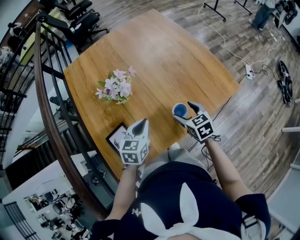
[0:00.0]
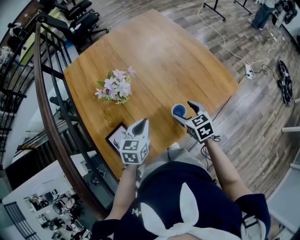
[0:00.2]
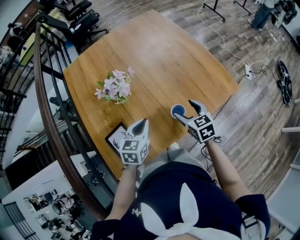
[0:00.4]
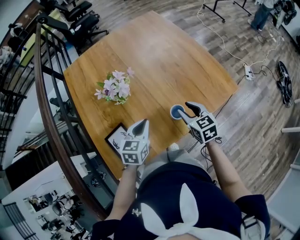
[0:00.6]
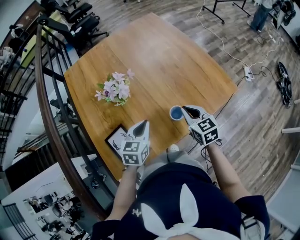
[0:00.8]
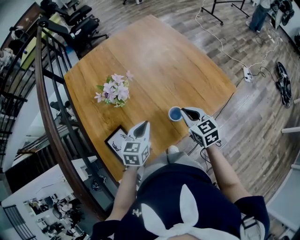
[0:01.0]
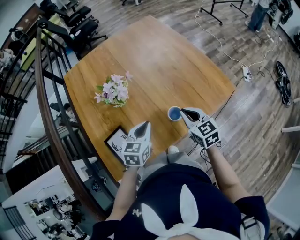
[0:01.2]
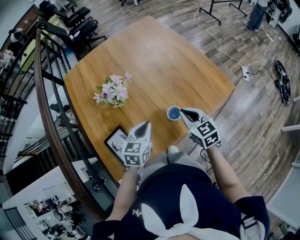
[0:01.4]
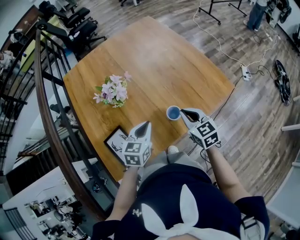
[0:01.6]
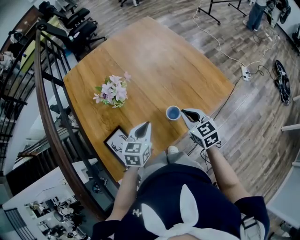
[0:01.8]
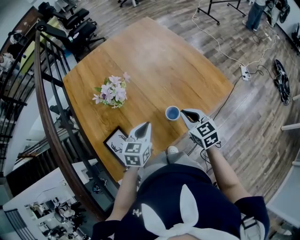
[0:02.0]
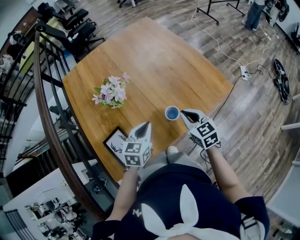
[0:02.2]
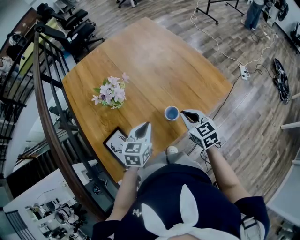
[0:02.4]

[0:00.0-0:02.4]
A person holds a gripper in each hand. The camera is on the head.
0.0 to 1.2 s: The right gripper shifts some 5 cm upward, and closes its fingers.
1.2 to 2.4 s: The grippers stay close to where they were, moving slightly.

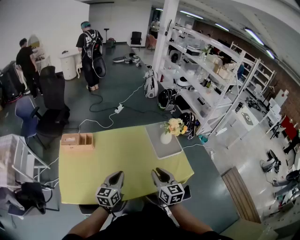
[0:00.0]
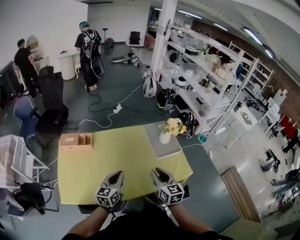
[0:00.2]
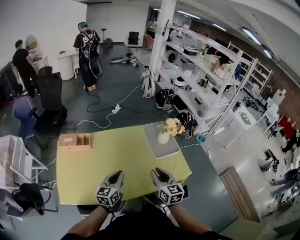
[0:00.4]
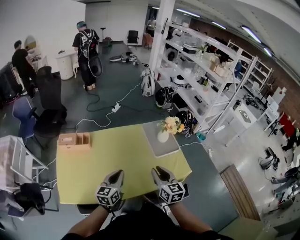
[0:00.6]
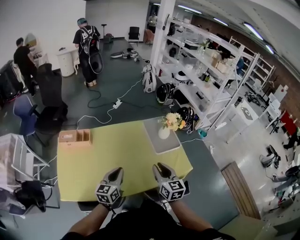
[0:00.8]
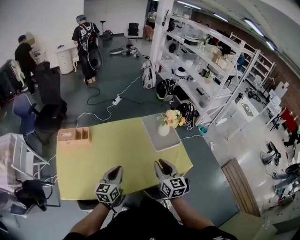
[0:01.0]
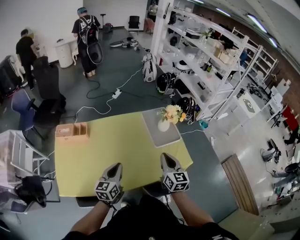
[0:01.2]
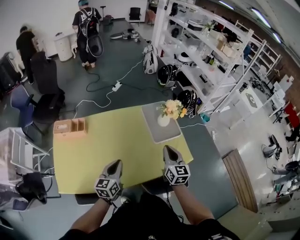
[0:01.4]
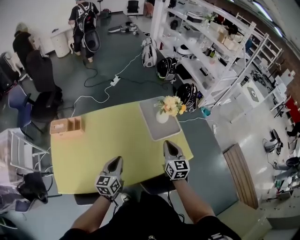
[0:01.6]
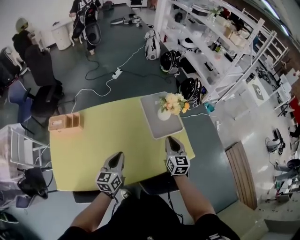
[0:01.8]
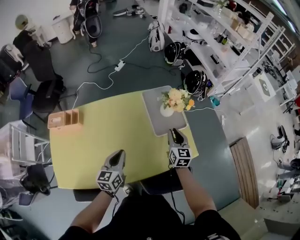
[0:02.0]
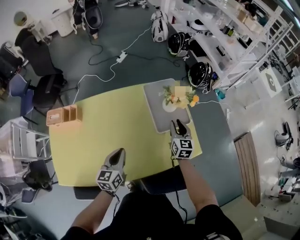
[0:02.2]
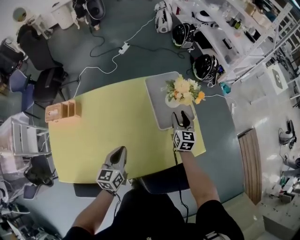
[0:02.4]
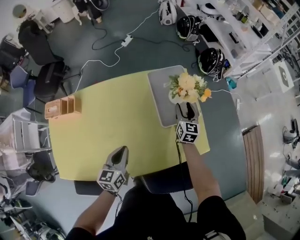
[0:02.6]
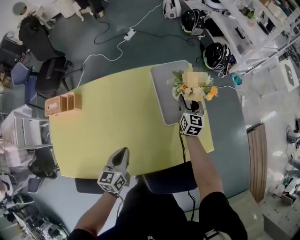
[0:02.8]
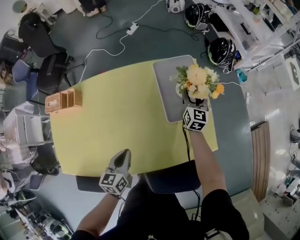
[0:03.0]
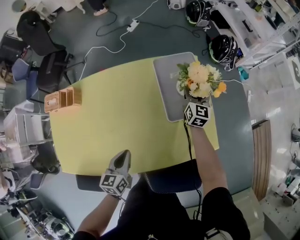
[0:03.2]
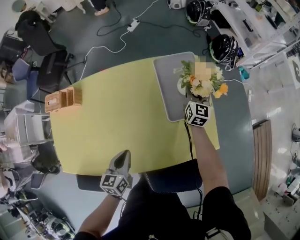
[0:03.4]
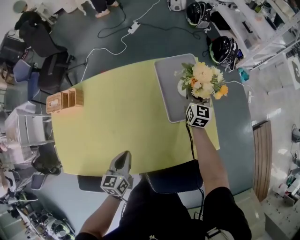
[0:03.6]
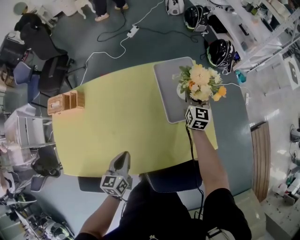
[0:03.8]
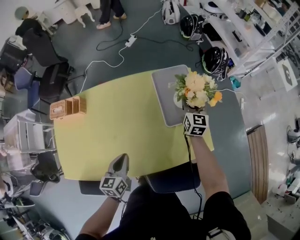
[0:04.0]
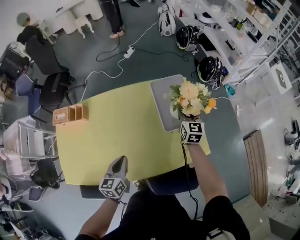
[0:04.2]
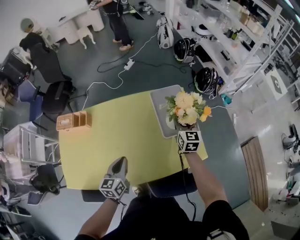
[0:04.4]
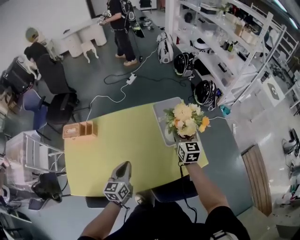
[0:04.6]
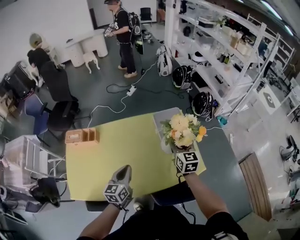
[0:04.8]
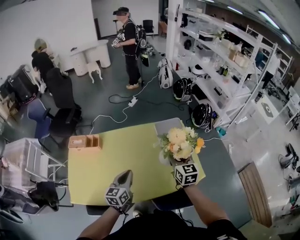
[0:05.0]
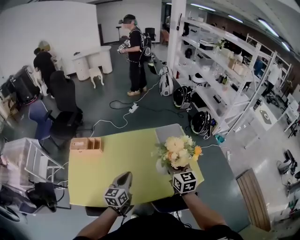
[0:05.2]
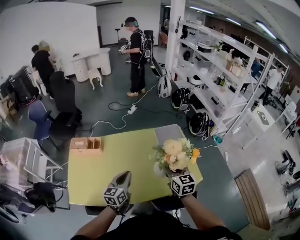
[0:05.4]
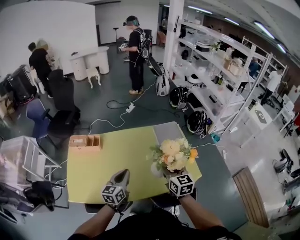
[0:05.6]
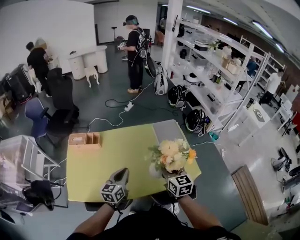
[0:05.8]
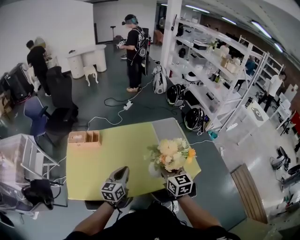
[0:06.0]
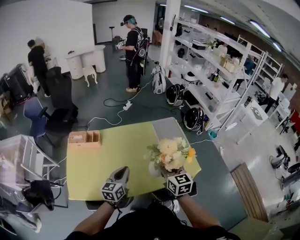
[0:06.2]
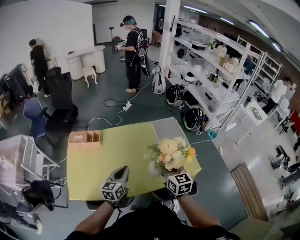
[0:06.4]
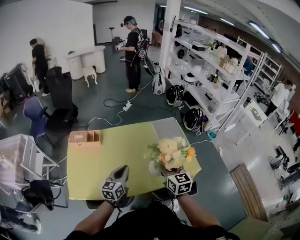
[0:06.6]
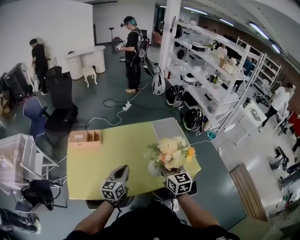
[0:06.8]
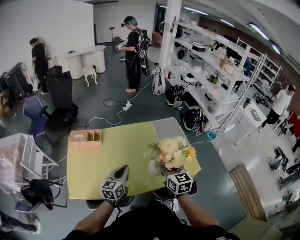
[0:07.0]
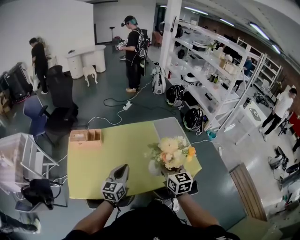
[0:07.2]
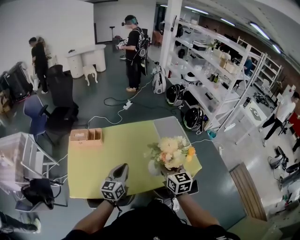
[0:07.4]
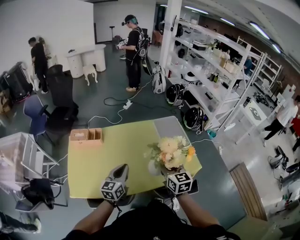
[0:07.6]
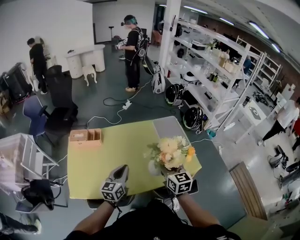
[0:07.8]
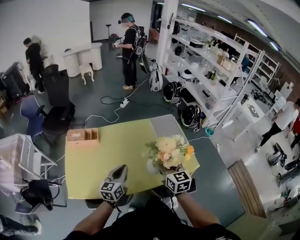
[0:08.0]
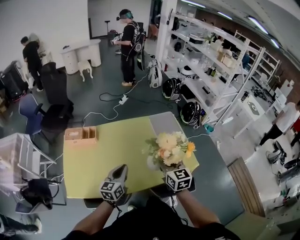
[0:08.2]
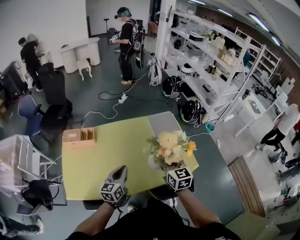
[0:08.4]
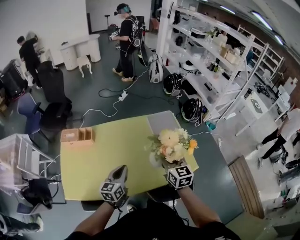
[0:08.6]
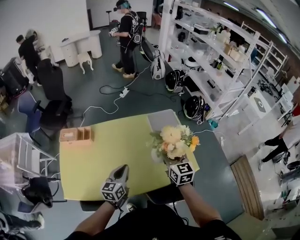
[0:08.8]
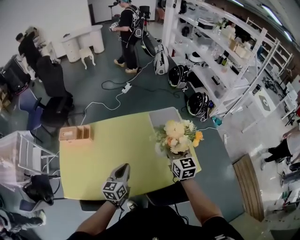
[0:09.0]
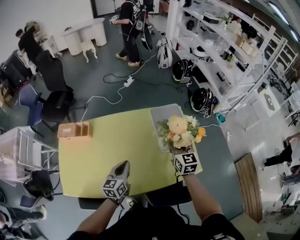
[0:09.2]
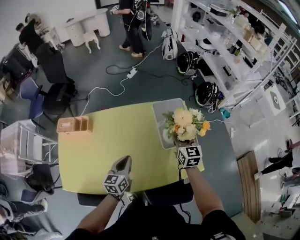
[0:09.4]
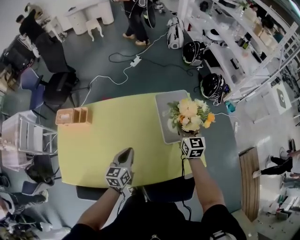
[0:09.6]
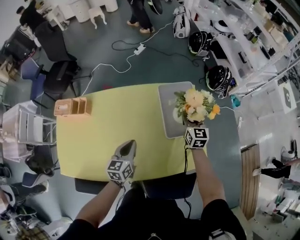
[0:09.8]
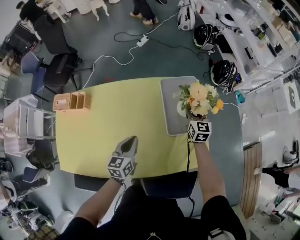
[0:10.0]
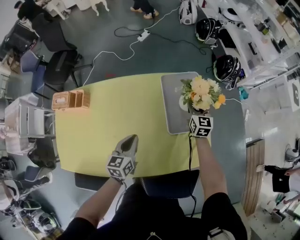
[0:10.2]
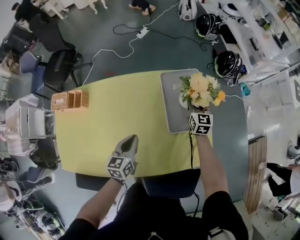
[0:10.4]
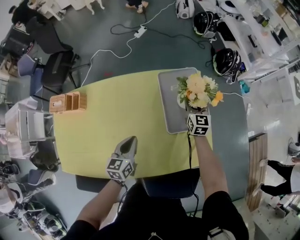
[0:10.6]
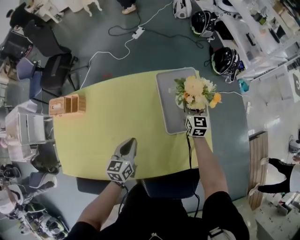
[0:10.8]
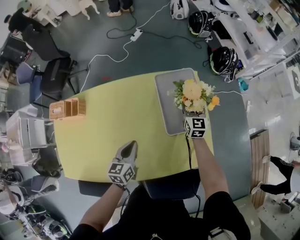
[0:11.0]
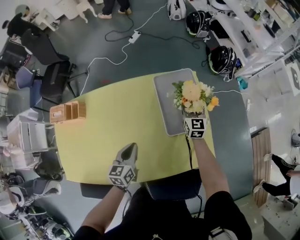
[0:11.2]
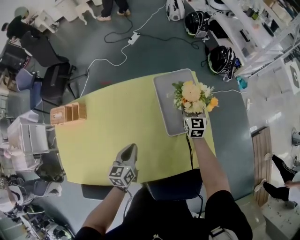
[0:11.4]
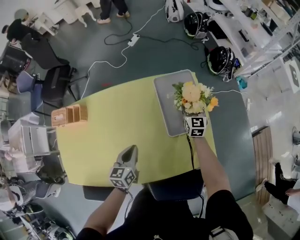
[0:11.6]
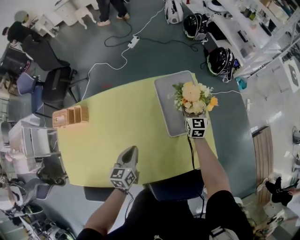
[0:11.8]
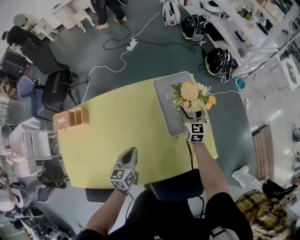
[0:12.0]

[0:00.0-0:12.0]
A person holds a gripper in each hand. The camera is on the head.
0.0 to 1.6 s: The left gripper is displaced forward, to the right and downward by roughly 10 cm; the right gripper shifts about 20 cm forward, to the right and downward.
1.6 to 3.0 s: The left gripper travels downward and forward by about 20 cm; the right gripper is displaced forward and downward by approximately 40 cm, and opens up.
3.0 to 4.4 s: The left gripper is displaced upward by roughly 10 cm; the right gripper is displaced upward and backward by about 20 cm.
4.4 to 6.0 s: The right gripper is displaced backward, to the left and upward by roughly 35 cm; the left gripper moves backward, upward and to the left, approximately 15 cm.
6.0 to 7.6 s: The grippers move only a little.
7.6 to 9.0 s: The right gripper heads forward and to the right, covering about 25 cm, while the left gripper heads forward, to the right and downward, covering some 15 cm.
9.0 to 10.4 s: The right gripper heads forward, downward and to the right, covering some 40 cm. Meanwhile the left gripper travels forward, downward and to the right by roughly 20 cm.
10.4 to 12.0 s: The right gripper changes place by some 5 cm, and opens up.

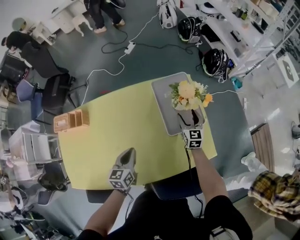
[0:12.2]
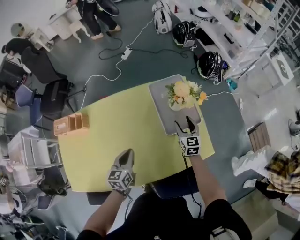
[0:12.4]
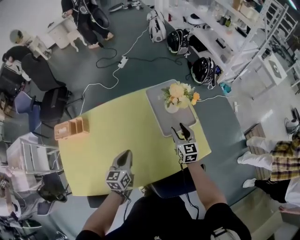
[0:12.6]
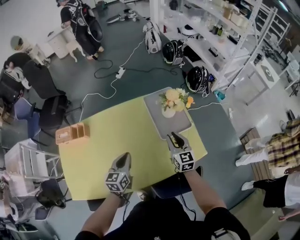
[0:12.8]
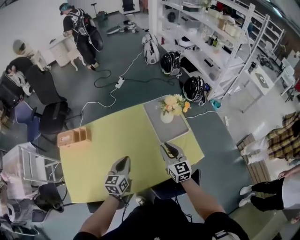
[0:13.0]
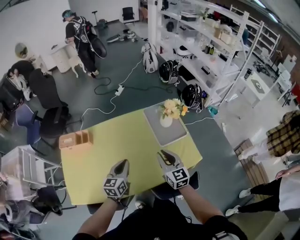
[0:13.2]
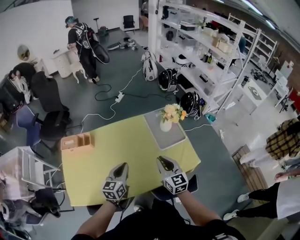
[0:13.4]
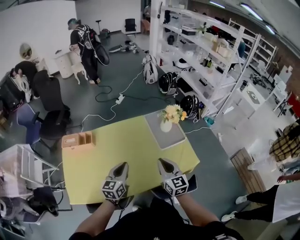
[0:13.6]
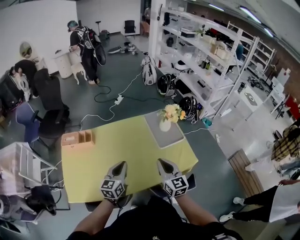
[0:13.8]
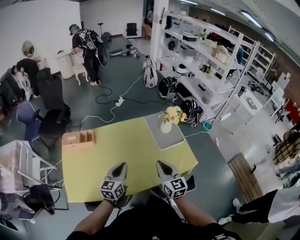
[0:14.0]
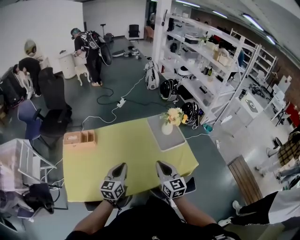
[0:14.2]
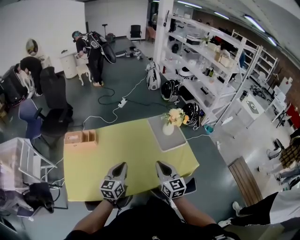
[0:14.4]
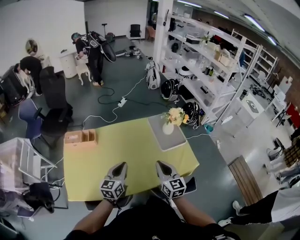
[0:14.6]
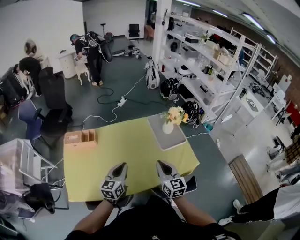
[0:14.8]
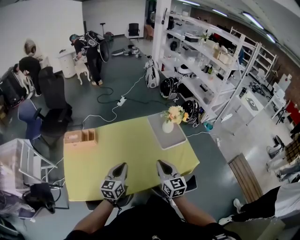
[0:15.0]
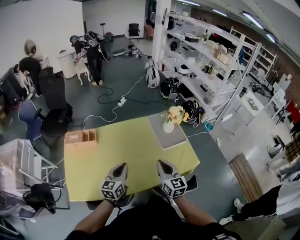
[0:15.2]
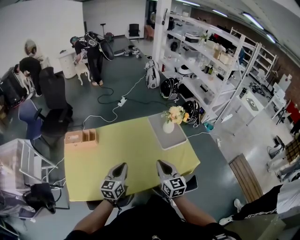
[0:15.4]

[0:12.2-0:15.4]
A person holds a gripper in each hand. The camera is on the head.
12.2 to 13.8 s: The right gripper travels backward, upward and to the left by about 50 cm, and closes its fingers; the left gripper goes about 25 cm upward, backward and to the left, and swivels approximately 20 degrees.
13.8 to 15.4 s: The grippers make only small movements.

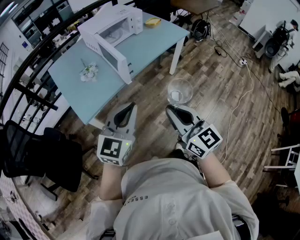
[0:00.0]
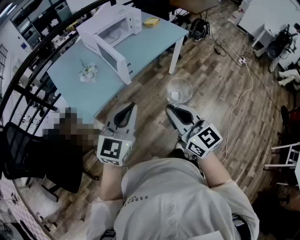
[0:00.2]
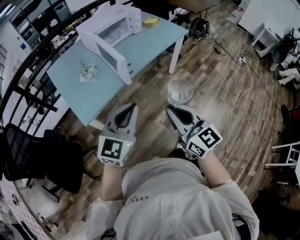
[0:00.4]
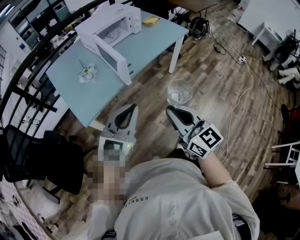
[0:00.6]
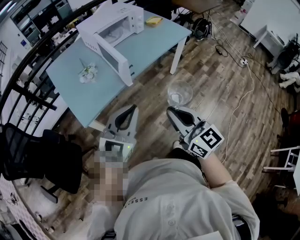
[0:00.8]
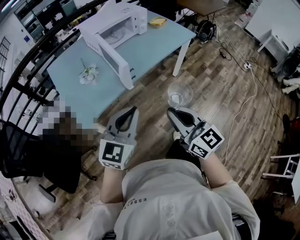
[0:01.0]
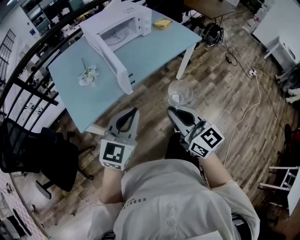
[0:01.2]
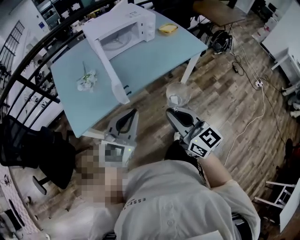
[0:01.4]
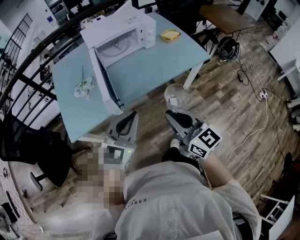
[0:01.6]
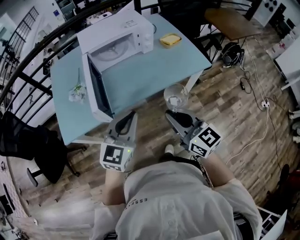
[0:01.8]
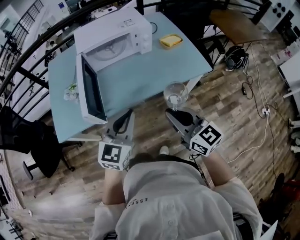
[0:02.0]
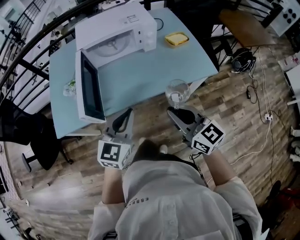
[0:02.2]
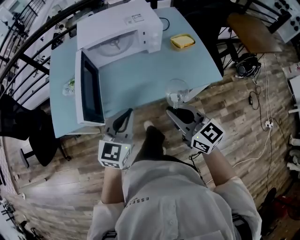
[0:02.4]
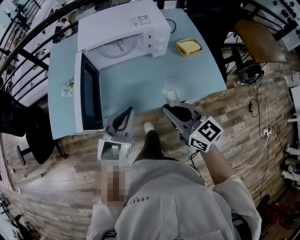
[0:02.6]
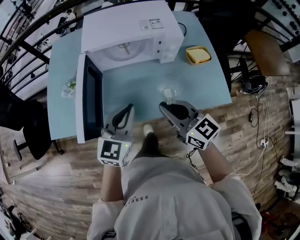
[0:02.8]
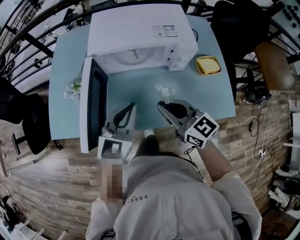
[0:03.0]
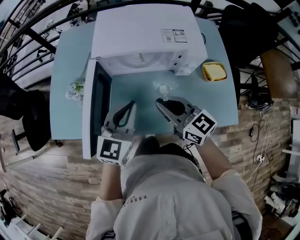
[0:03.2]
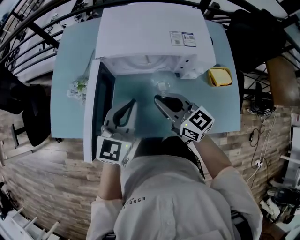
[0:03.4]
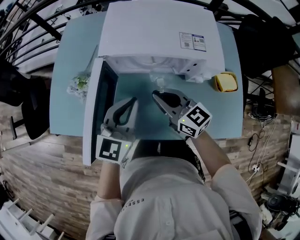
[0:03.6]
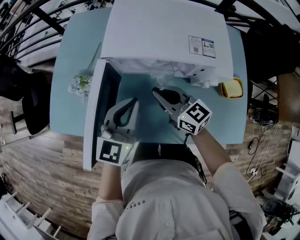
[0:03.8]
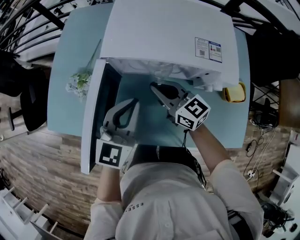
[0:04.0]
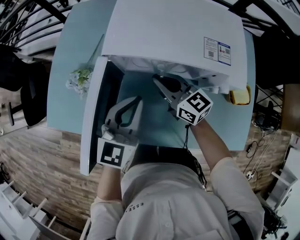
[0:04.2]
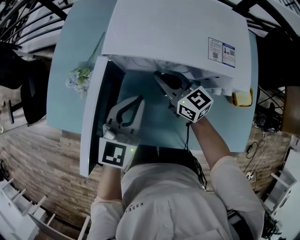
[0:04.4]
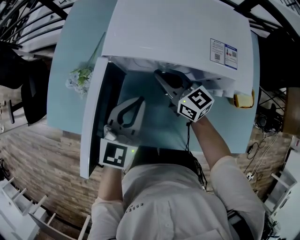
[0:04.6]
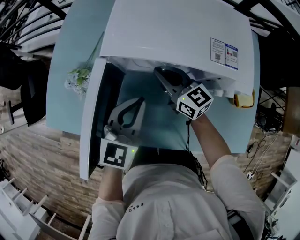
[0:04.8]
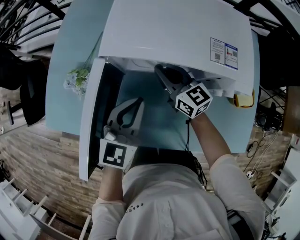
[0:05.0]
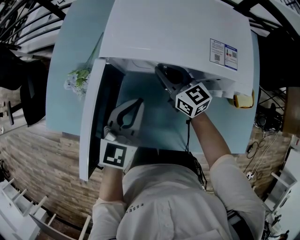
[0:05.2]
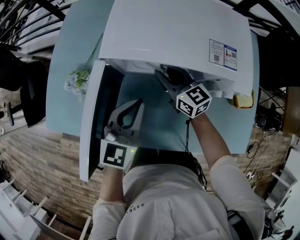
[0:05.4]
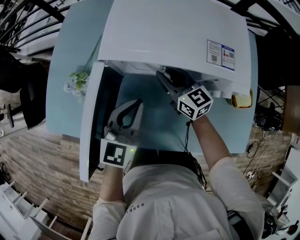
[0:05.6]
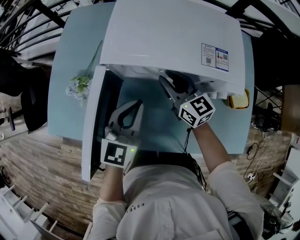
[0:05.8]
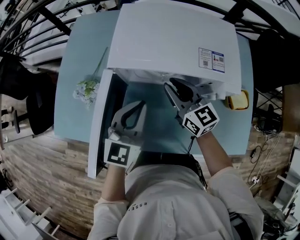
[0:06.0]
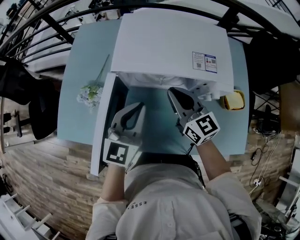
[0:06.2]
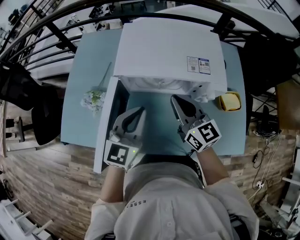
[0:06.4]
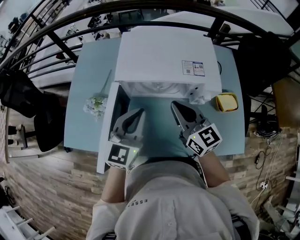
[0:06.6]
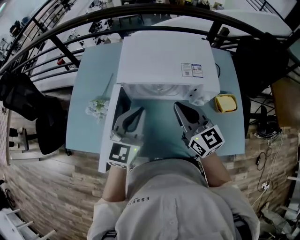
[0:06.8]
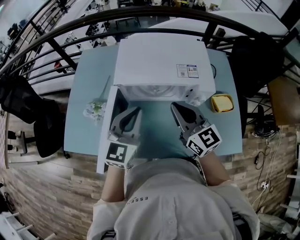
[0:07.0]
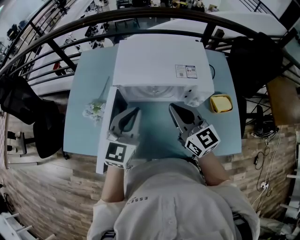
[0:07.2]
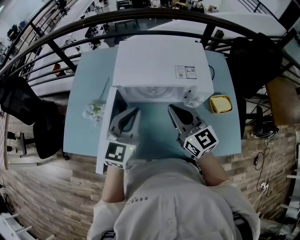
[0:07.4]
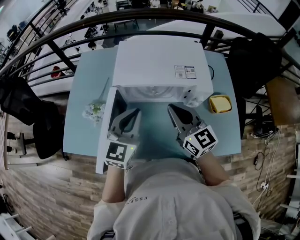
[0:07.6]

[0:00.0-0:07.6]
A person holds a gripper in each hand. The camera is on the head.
0.0 to 1.6 s: The grippers both shift forward and to the right by about 25 cm. The right gripper turns by approximately 20 degrees.
1.6 to 3.0 s: The left gripper shifts by some 30 cm, and turns by some 30 degrees; the right gripper changes place by some 35 cm, and turns by roughly 30 degrees.
3.0 to 4.6 s: The right gripper goes approximately 25 cm forward and downward; the left gripper shifts roughly 15 cm forward.
4.6 to 6.0 s: The right gripper goes approximately 5 cm upward.
6.0 to 7.6 s: The right gripper heads upward and backward, covering some 15 cm, and closes, while the left gripper heads upward, covering roughly 10 cm.
